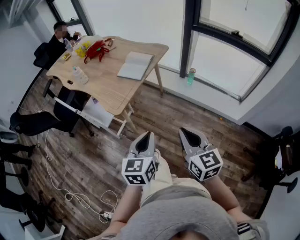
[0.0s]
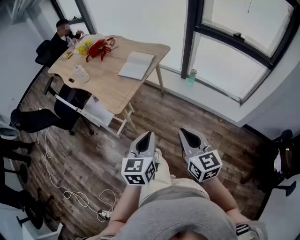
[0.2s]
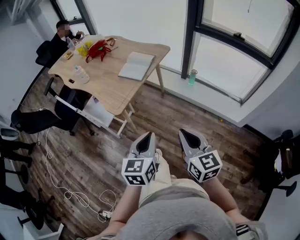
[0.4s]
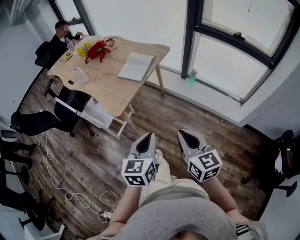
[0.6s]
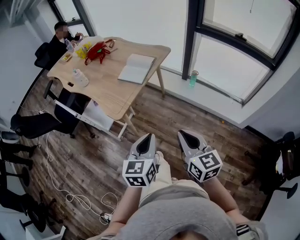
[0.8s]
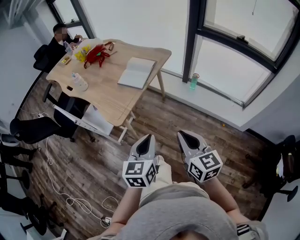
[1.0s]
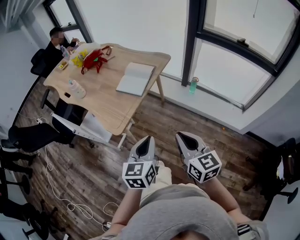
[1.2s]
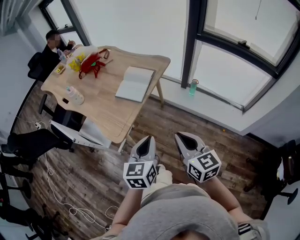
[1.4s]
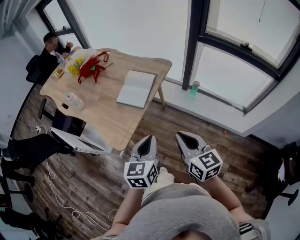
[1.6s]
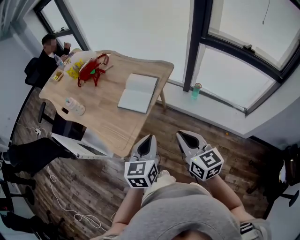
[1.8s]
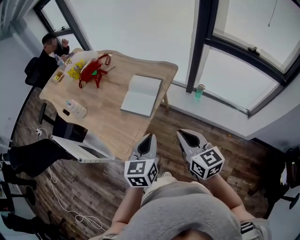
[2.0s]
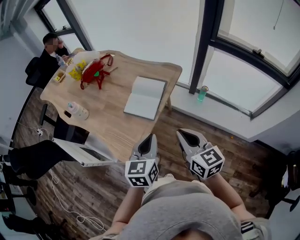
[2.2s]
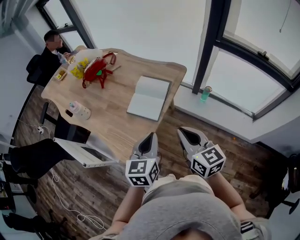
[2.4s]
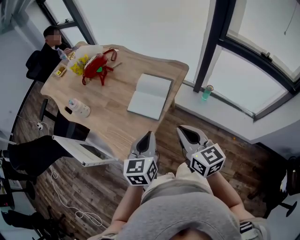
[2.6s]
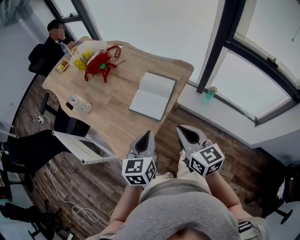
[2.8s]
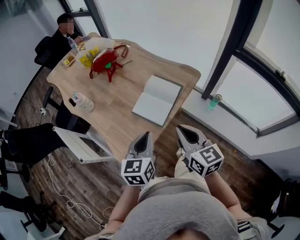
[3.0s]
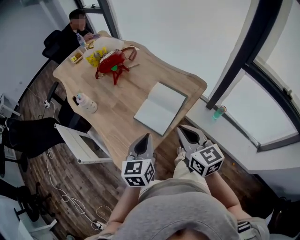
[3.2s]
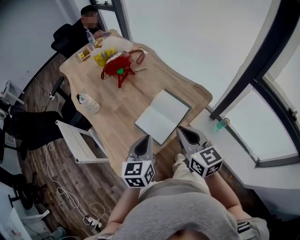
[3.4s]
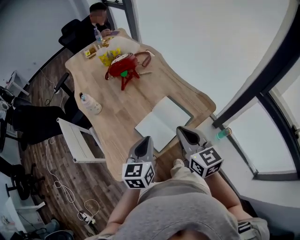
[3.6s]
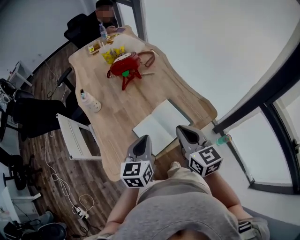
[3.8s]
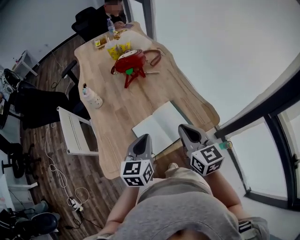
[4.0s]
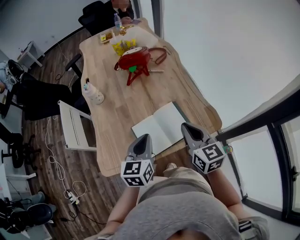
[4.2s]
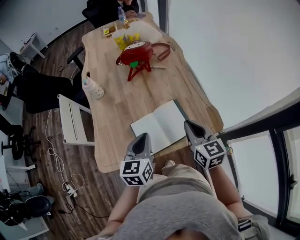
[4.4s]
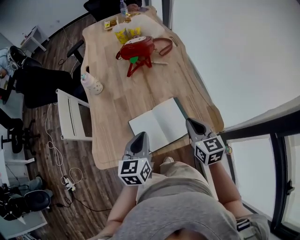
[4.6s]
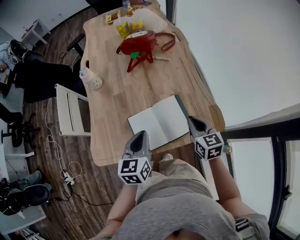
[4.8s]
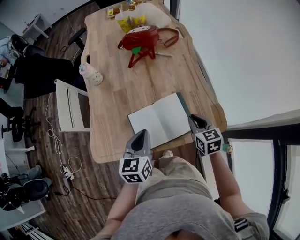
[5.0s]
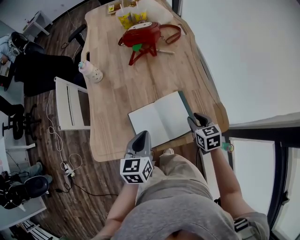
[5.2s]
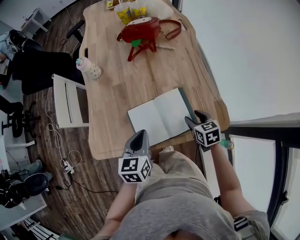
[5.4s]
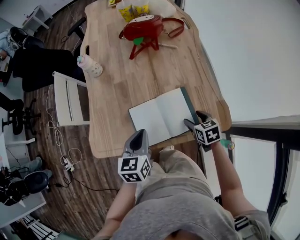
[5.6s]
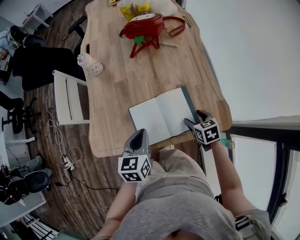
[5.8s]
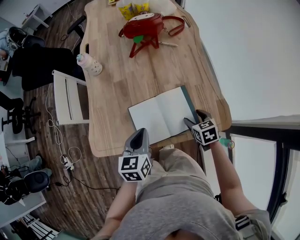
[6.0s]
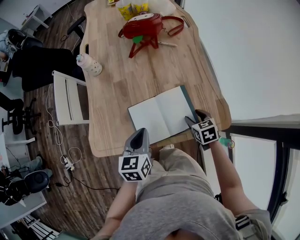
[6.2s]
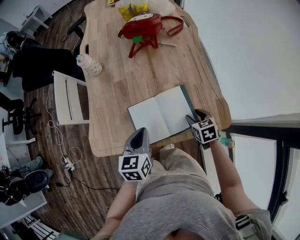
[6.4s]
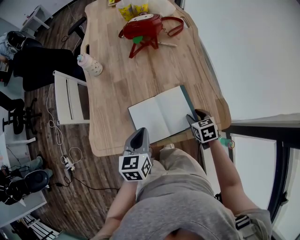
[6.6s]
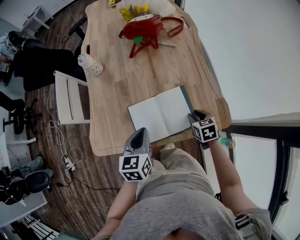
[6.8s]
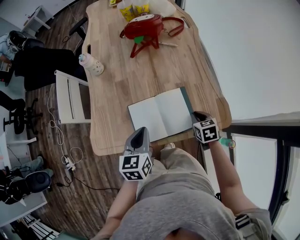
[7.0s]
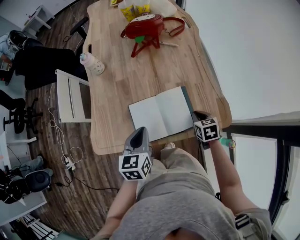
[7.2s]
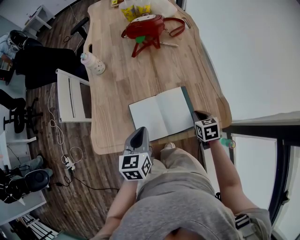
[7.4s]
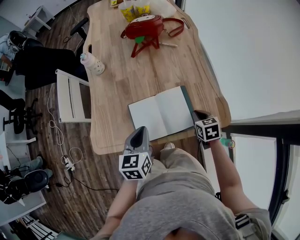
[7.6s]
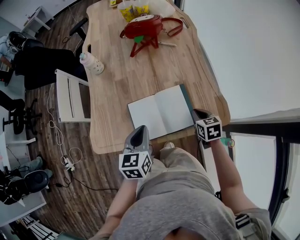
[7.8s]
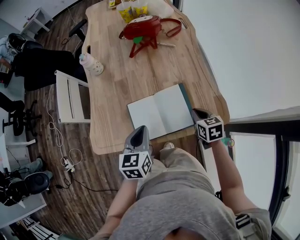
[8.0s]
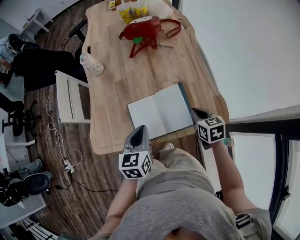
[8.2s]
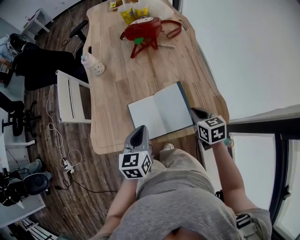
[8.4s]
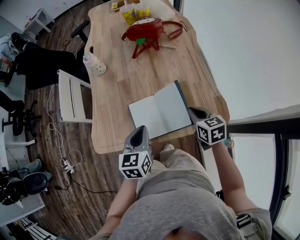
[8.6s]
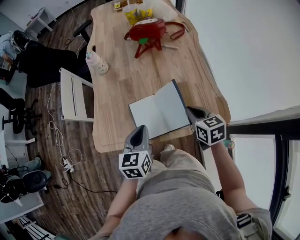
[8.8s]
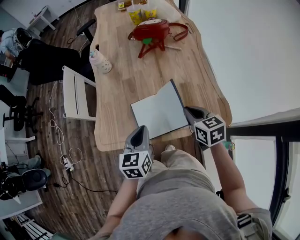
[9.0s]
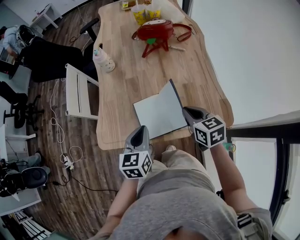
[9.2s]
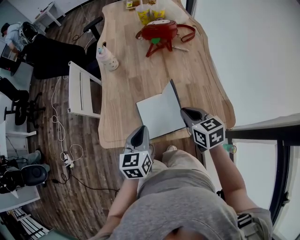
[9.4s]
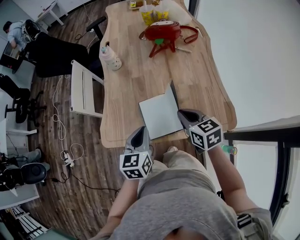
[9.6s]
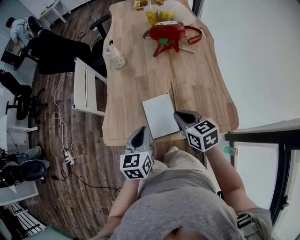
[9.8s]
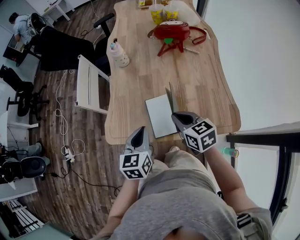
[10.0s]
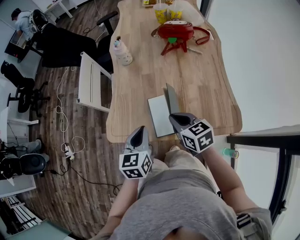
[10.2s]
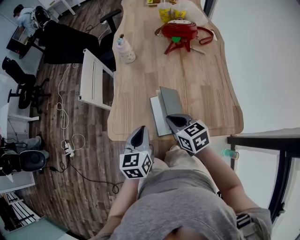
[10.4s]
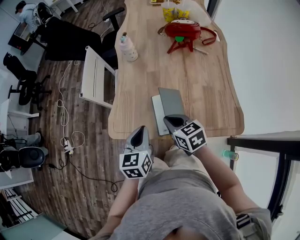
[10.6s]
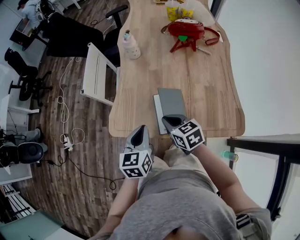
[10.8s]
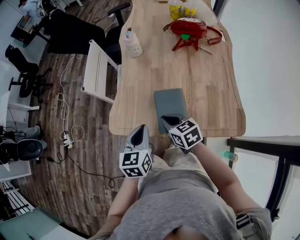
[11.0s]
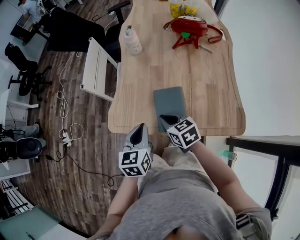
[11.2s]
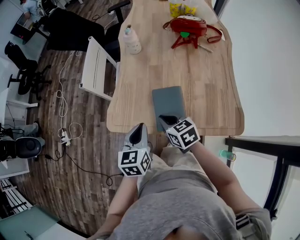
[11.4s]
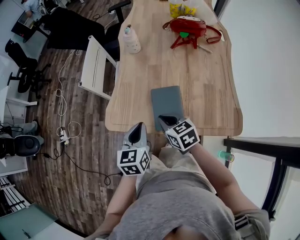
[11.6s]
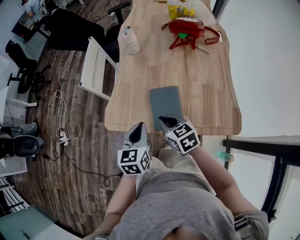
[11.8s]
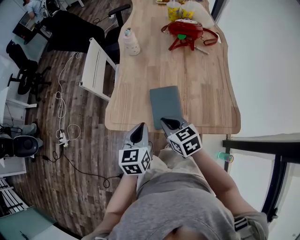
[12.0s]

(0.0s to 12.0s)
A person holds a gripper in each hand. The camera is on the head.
0.0s - 1.6s: The two grippers go some 20 cm forward.
1.6s - 3.0s: The left gripper heads forward and to the left, covering some 20 cm. The right gripper shifts some 20 cm forward.
3.0s - 4.4s: The left gripper changes place by approximately 20 cm, and changes its angle by approximately 40 degrees. The right gripper changes place by approximately 30 cm, and rotates roughly 30 degrees.
4.4s - 6.0s: The right gripper heads downward, covering approximately 20 cm, points its fingers roughly 30 degrees further downward, and opens its fingers. The left gripper shifts approximately 10 cm downward.
6.0s - 7.6s: The right gripper closes its fingers.
7.6s - 9.0s: The right gripper heads upward and to the left, covering some 15 cm.
9.0s - 10.4s: The right gripper is displaced to the left by some 15 cm, while the left gripper heads to the left, covering some 10 cm.

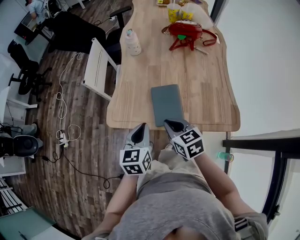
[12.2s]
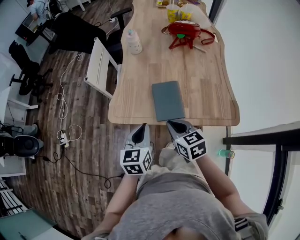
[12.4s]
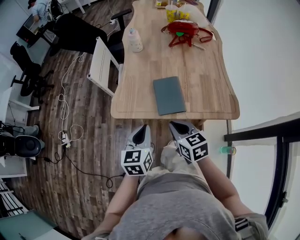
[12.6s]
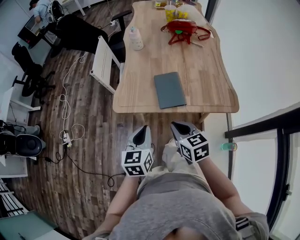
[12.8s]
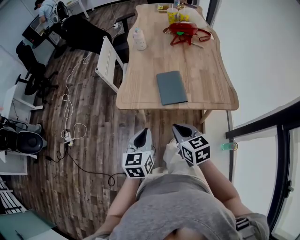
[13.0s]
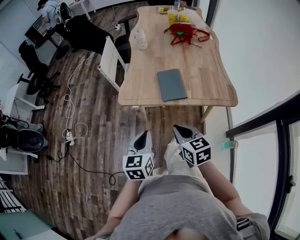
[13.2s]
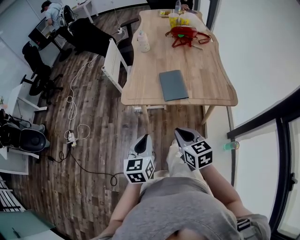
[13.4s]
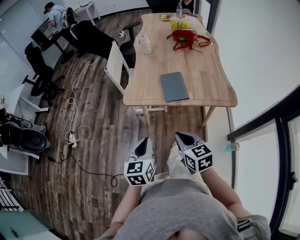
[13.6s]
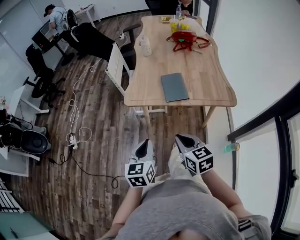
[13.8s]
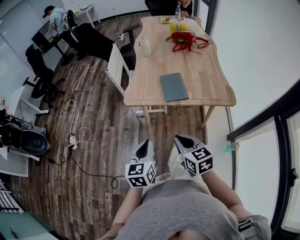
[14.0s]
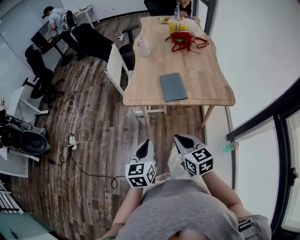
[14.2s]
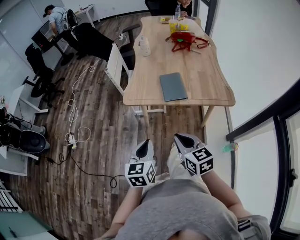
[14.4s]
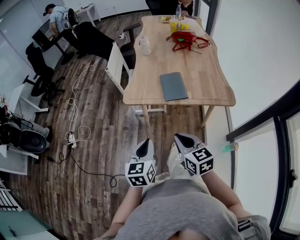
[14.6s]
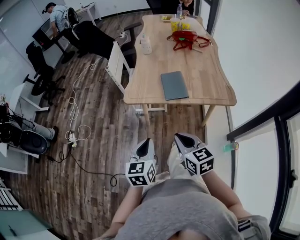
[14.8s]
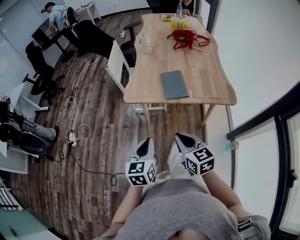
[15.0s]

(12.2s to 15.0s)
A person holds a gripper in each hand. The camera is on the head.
12.2s - 13.6s: The right gripper moves backward, approximately 25 cm. The left gripper is displaced backward and to the left by some 25 cm.
13.6s - 15.0s: The grippers stay close to where they were, moving slightly.

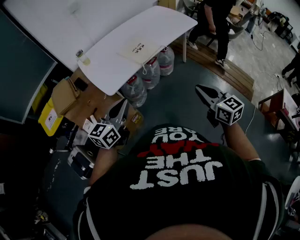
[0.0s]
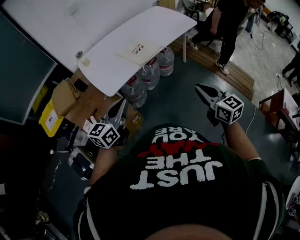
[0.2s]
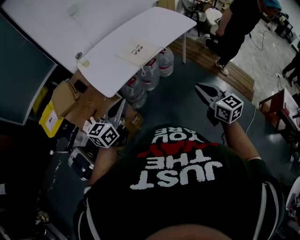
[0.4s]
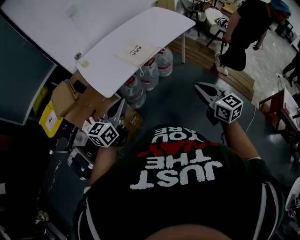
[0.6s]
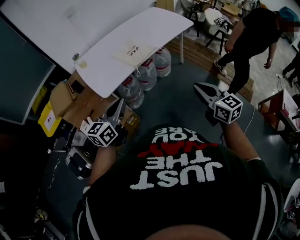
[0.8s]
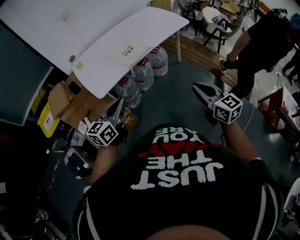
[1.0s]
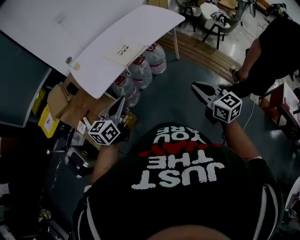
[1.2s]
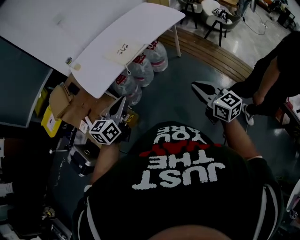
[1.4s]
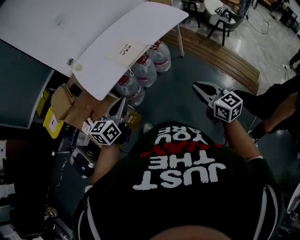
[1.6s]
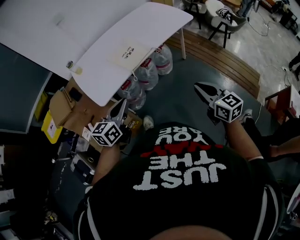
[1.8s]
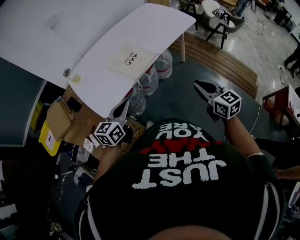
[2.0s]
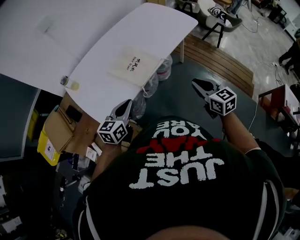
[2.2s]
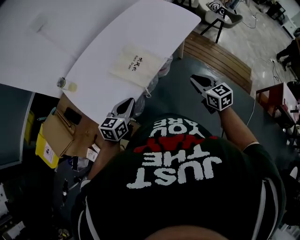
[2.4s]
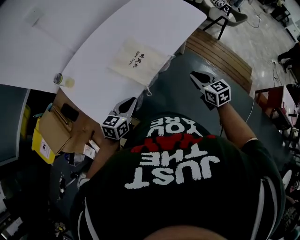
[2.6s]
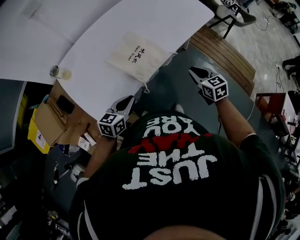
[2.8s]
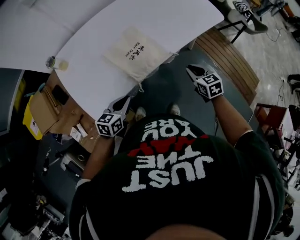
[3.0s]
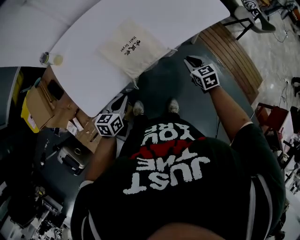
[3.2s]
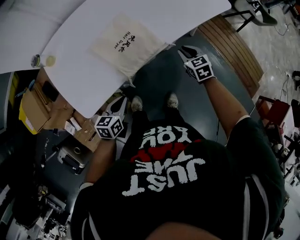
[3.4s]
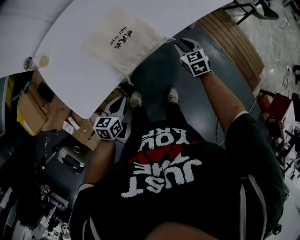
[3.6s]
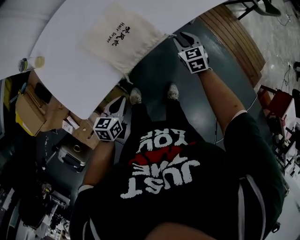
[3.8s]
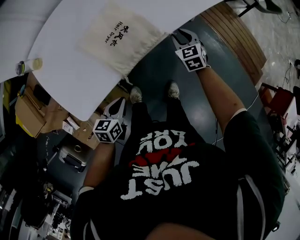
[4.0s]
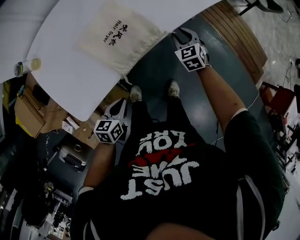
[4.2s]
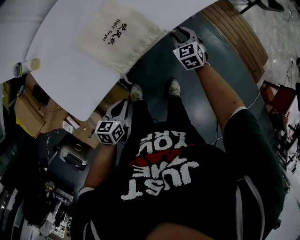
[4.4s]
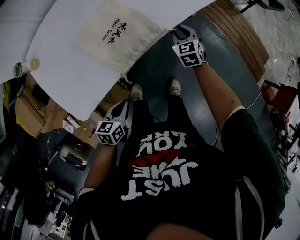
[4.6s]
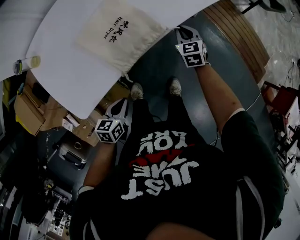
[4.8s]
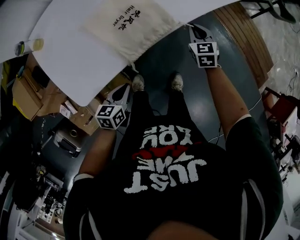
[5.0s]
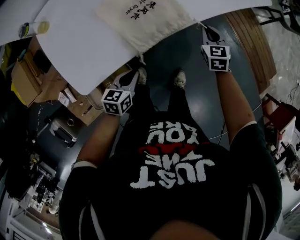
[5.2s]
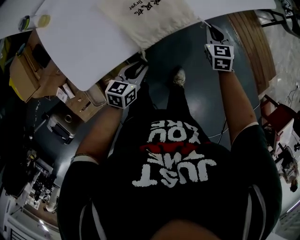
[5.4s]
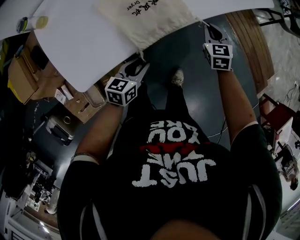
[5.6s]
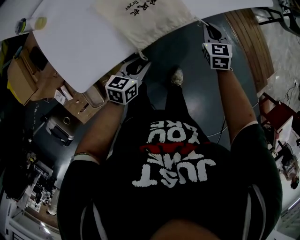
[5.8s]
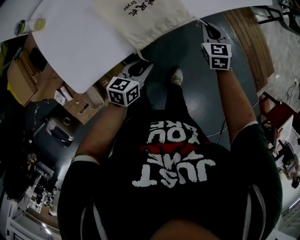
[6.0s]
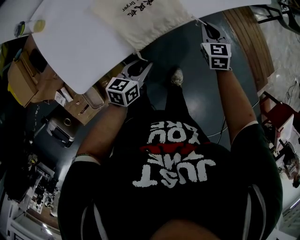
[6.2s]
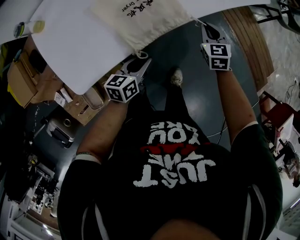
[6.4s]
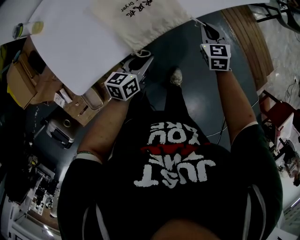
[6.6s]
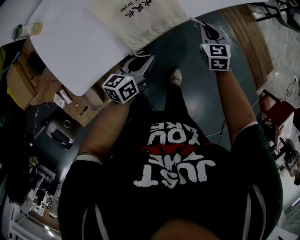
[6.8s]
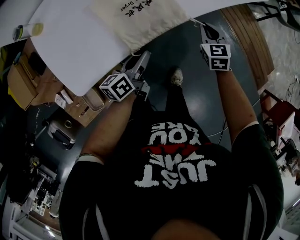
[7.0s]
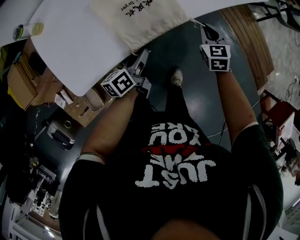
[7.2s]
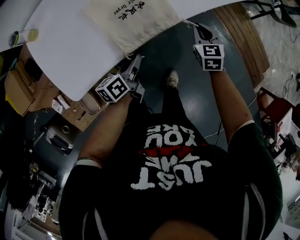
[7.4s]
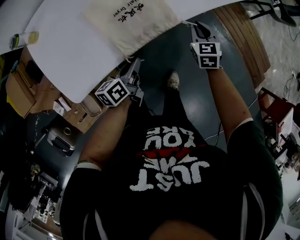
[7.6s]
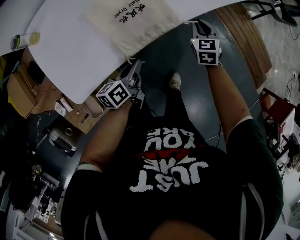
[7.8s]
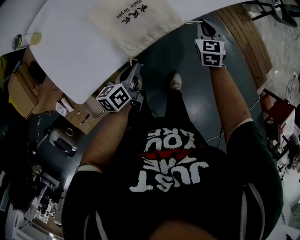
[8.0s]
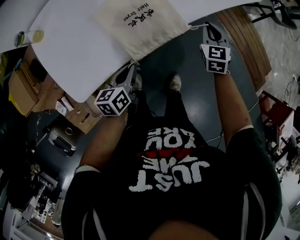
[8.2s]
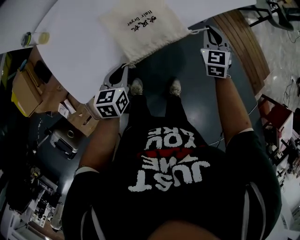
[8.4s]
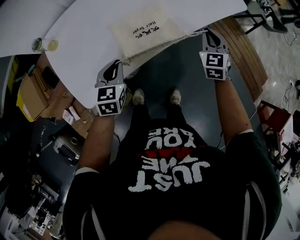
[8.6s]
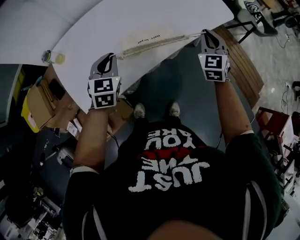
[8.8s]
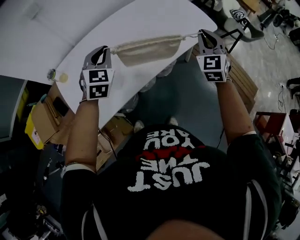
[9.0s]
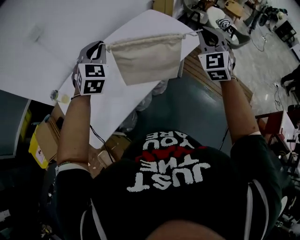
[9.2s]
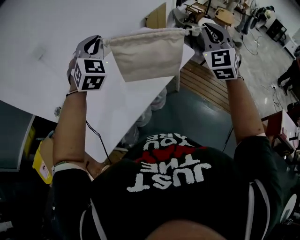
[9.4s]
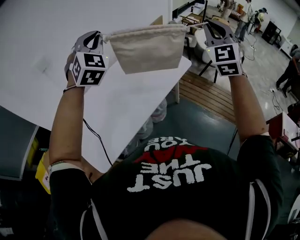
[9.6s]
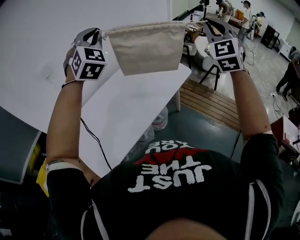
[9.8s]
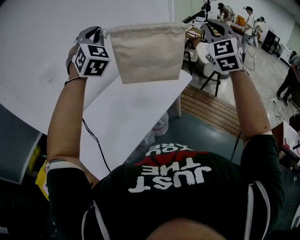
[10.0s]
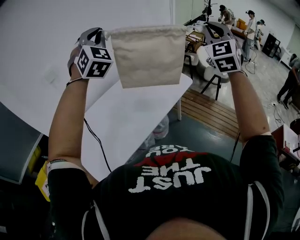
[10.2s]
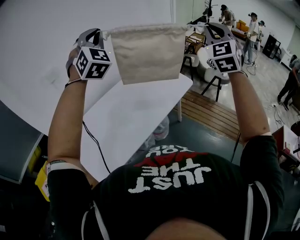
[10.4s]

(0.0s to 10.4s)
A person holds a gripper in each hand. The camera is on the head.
0.0s - 1.4s: The two grippers go roughly 15 cm to the right.
1.4s - 3.0s: The left gripper shifts approximately 40 cm forward, downward and to the left, and swivels roughly 20 degrees, while the right gripper shifts about 50 cm forward and downward, and points its fingers roughly 30 degrees further downward.
3.0s - 4.4s: The left gripper heads downward, covering approximately 15 cm, while the right gripper moves downward and forward, some 20 cm, and opens up.
4.4s - 6.0s: The right gripper closes up. Meanwhile the left gripper shifts roughly 10 cm forward, and opens.
6.0s - 7.4s: The left gripper shifts by about 5 cm, changes its angle by some 30 degrees, and closes.
7.4s - 9.0s: The left gripper is displaced upward and forward by approximately 35 cm, and twists some 80 degrees clockwise, seen from behind. Meanwhile the right gripper travels upward by some 35 cm, and rotates approximately 40 degrees.
9.0s - 10.4s: The two grippers go some 40 cm upward. The right gripper rotates some 30 degrees; the left gripper tilts its fingers some 30 degrees upward.
